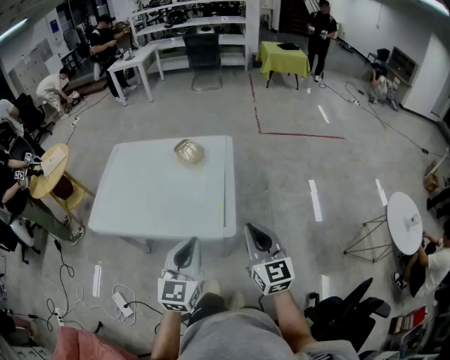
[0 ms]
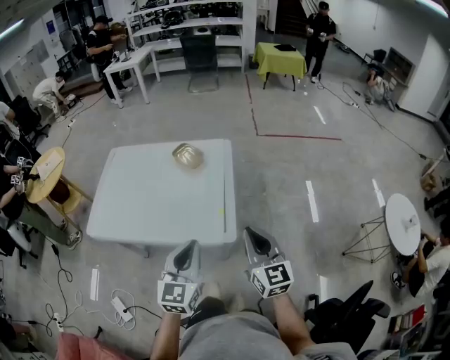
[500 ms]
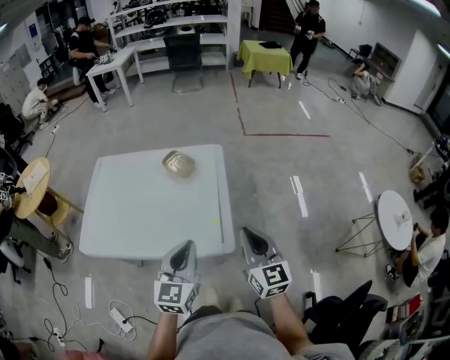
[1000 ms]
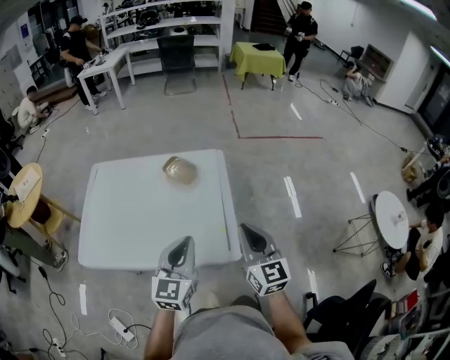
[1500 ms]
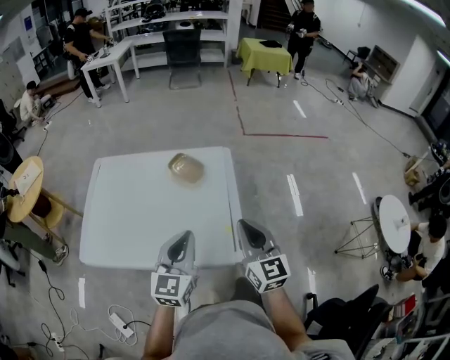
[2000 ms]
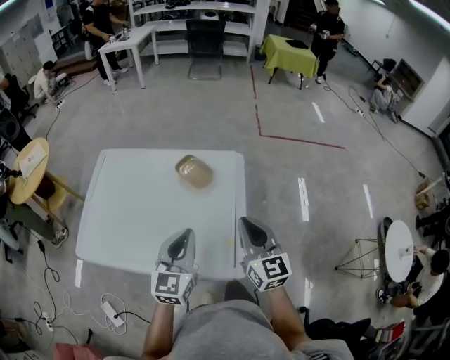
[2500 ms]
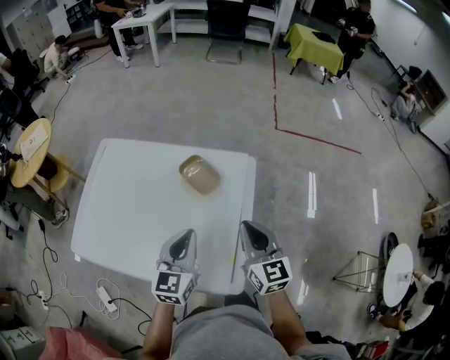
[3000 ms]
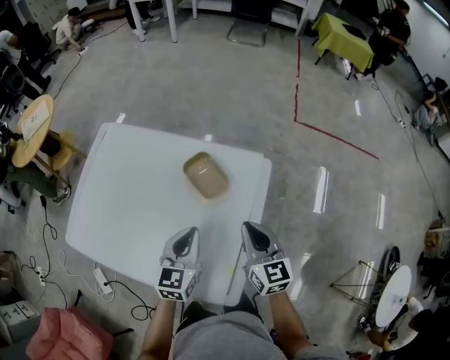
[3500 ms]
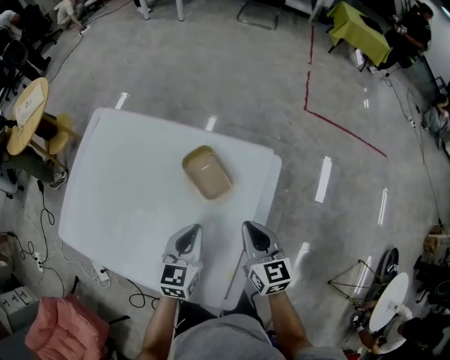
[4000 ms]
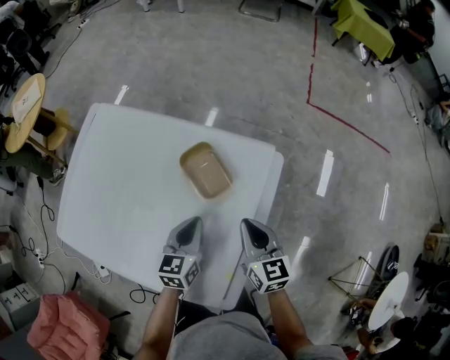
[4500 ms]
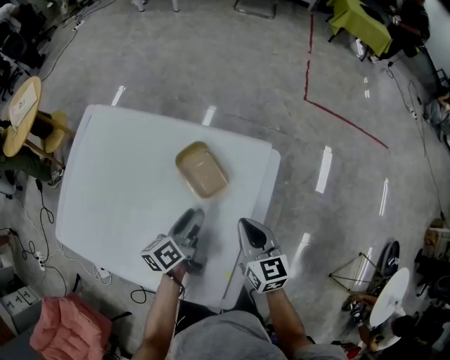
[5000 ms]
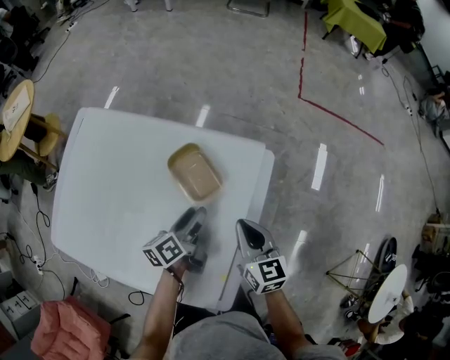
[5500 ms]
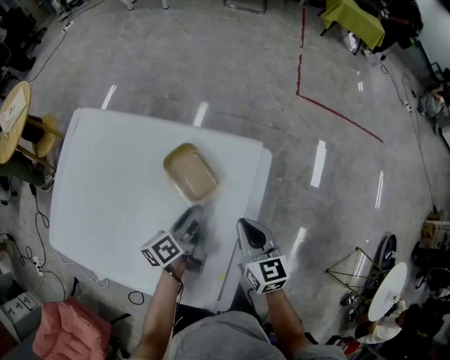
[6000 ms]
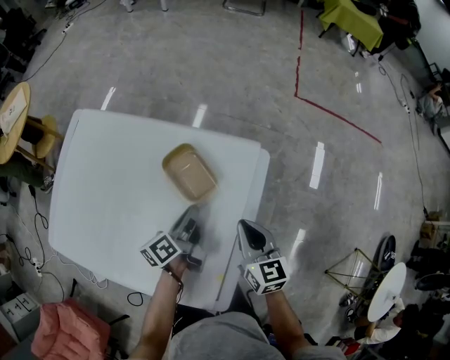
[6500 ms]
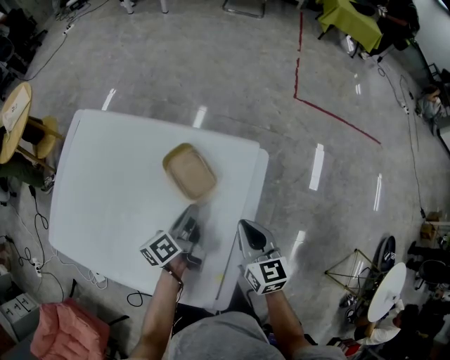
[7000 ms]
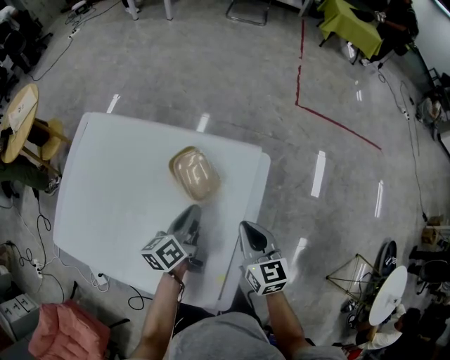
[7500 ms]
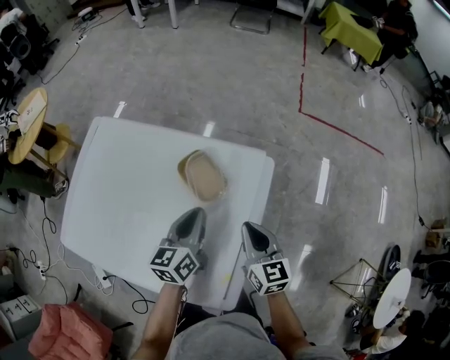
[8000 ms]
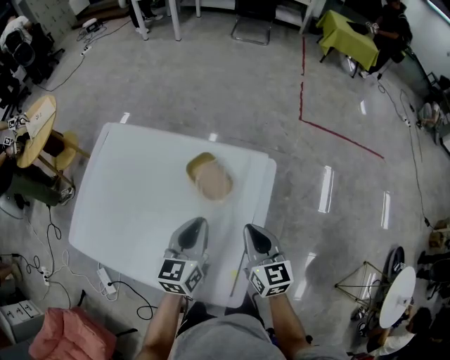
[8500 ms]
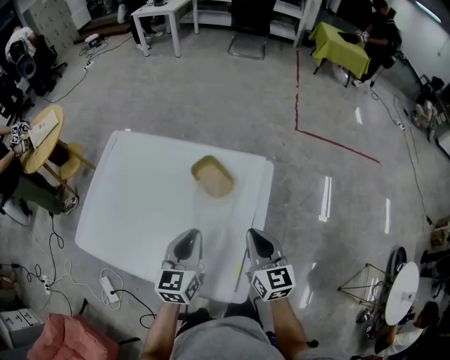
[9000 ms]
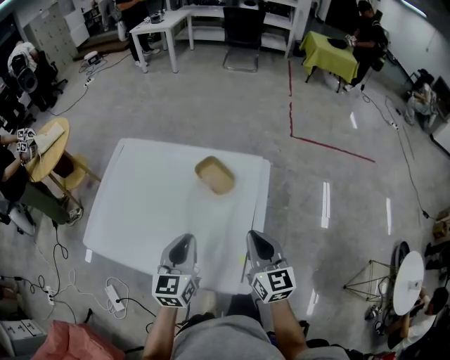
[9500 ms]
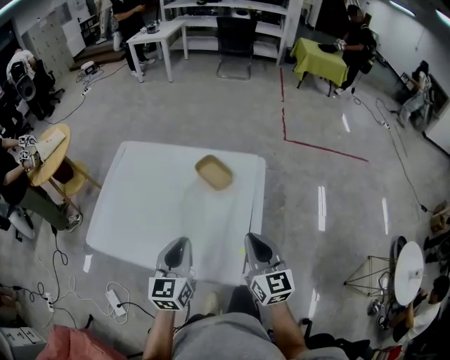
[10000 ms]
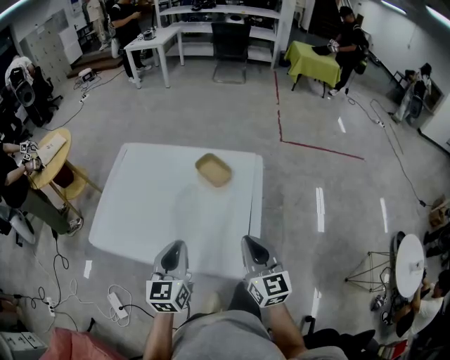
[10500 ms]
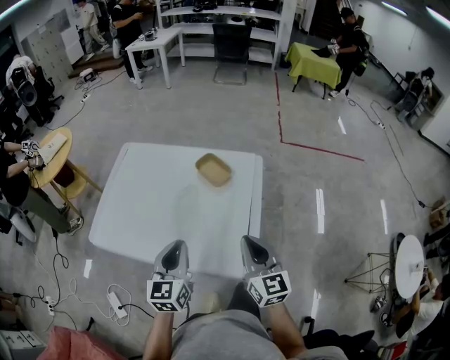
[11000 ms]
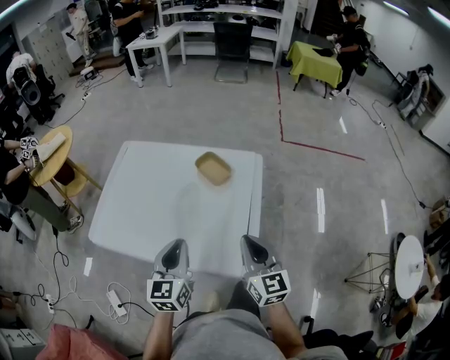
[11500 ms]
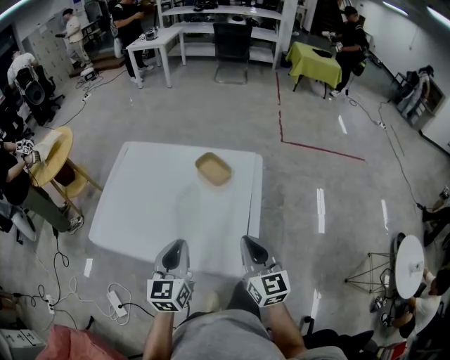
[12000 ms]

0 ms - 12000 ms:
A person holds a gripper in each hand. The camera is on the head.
0 ms - 2000 ms: Both grippers travel together forward and to the left, about 15 cm.
2000 ms - 4000 ms: The grippers both shift forward and downward by some 30 cm. The right gripper changes its angle by approximately 30 degrees; the left gripper turns by roughly 30 degrees.
4000 ms - 6000 ms: The left gripper is displaced downward and forward by about 10 cm, rolls counterclockwise, seen from behind, by roughly 50 degrees, and opens up.
6000 ms - 8000 ms: The left gripper heads upward, covering some 10 cm, changes its angle by approximately 30 degrees, and closes.
8000 ms - 10000 ms: The right gripper travels backward and upward by about 20 cm, while the left gripper travels backward, to the left and upward by approximately 25 cm, and changes its angle by some 20 degrees.
10000 ms - 12000 ms: There are only small adjustments of the grippers.

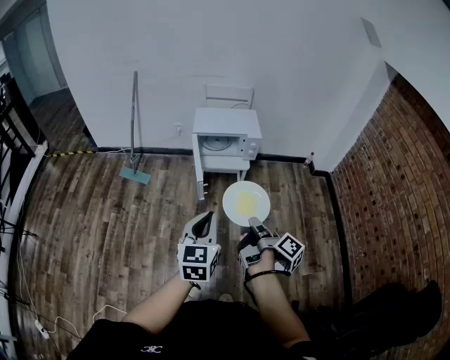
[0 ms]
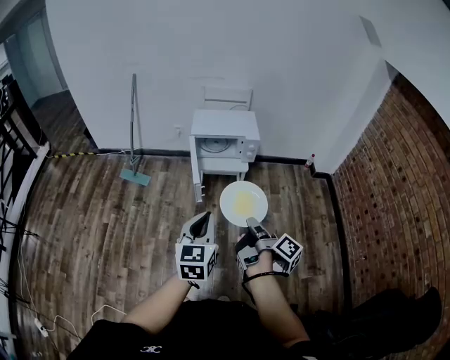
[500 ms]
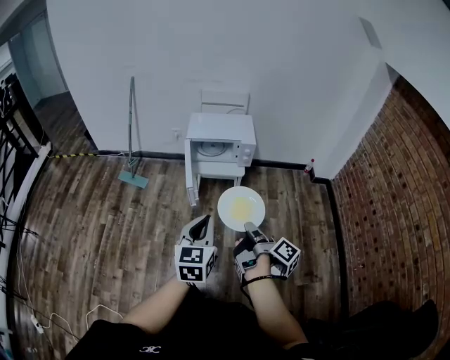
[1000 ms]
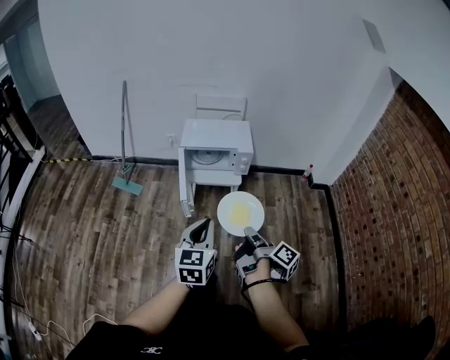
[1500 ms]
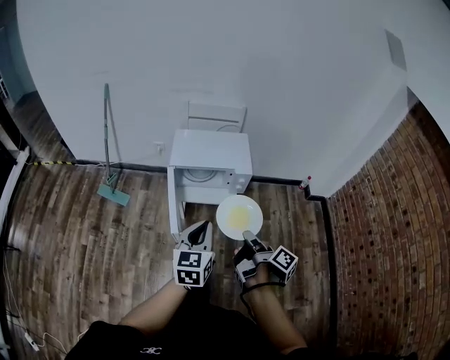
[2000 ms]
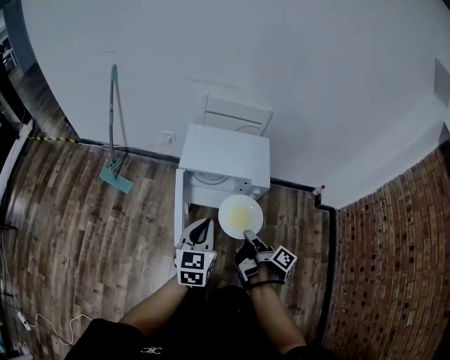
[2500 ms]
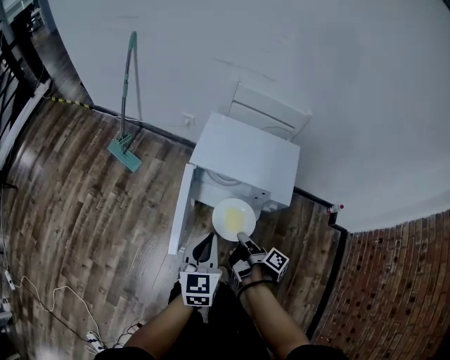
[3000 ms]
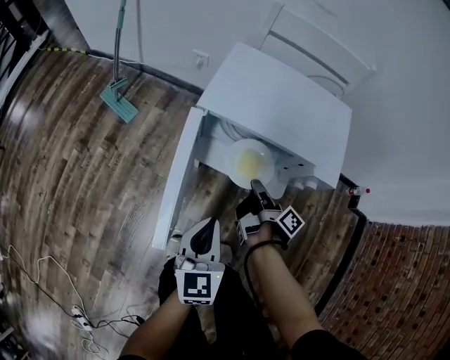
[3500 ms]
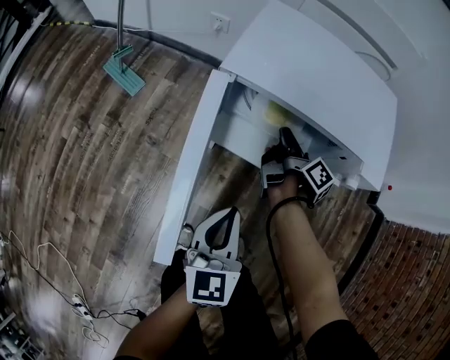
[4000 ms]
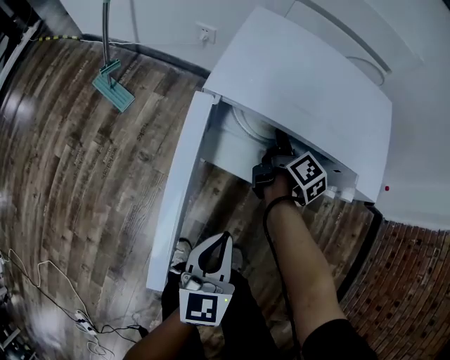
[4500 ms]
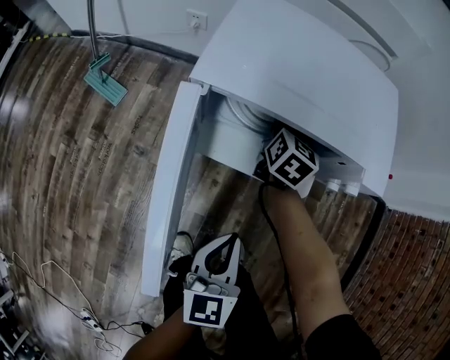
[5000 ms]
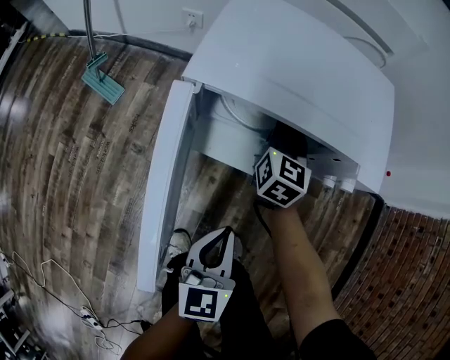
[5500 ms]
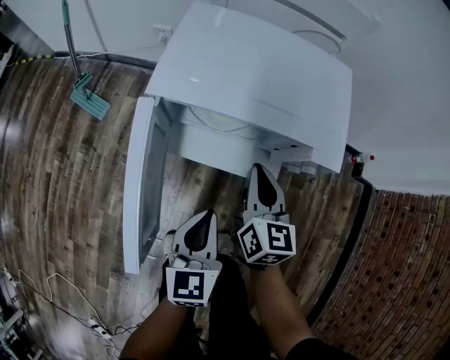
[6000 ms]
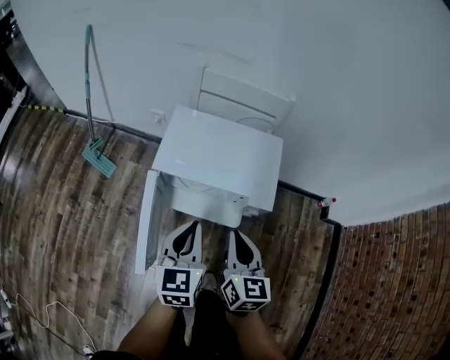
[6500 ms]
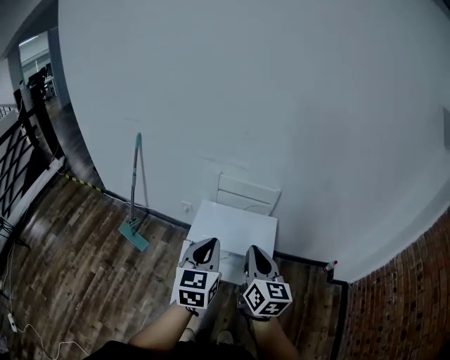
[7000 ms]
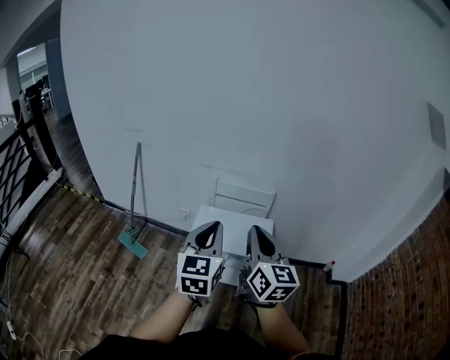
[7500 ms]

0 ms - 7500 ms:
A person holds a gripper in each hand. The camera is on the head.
0 ms - 2000 ms: Both grippers move forward, roughly 25 cm.
2000 ms - 4000 ms: The left gripper shifts some 40 cm downward and forward. Meanwhile the right gripper shifts about 60 cm forward and downward.
4000 ms - 5500 ms: The right gripper ends up roughly 5 cm from where it was, rolls counterclockwise, seen from behind, by about 70 degrees, and opens, then closes again.
5500 ms - 7500 ms: The two grippers go roughly 60 cm upward. The right gripper turns by some 30 degrees. The left gripper turns by about 30 degrees.

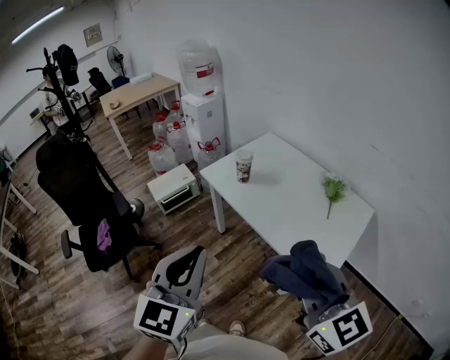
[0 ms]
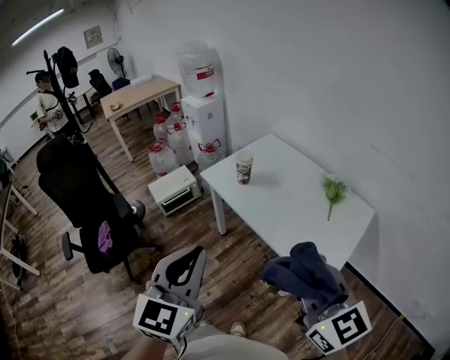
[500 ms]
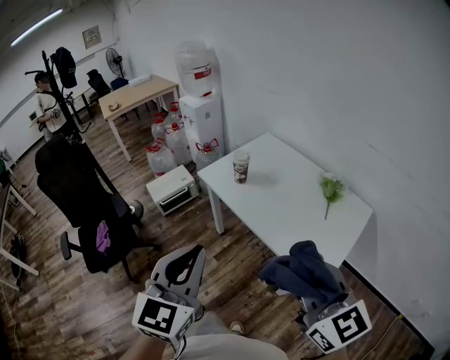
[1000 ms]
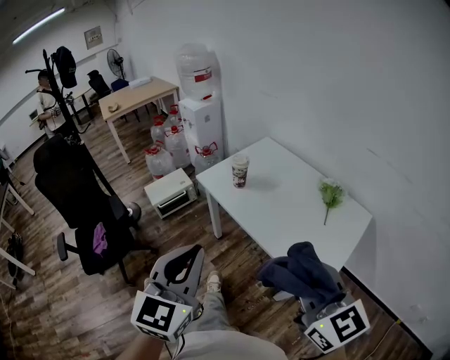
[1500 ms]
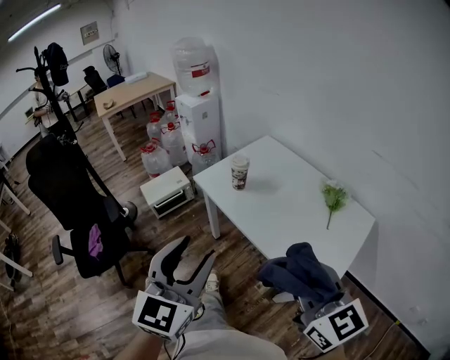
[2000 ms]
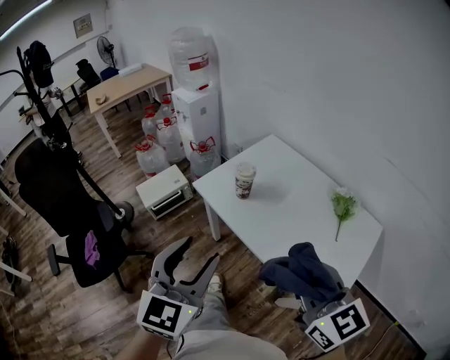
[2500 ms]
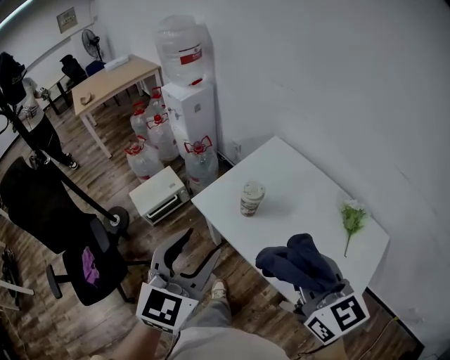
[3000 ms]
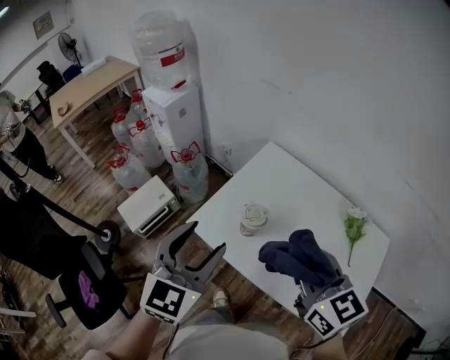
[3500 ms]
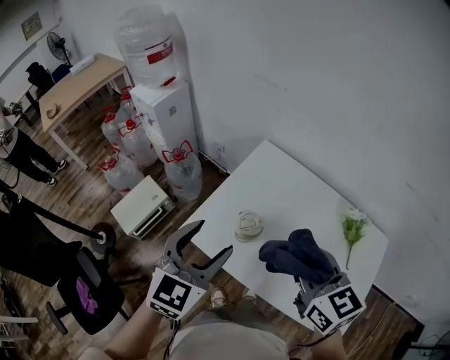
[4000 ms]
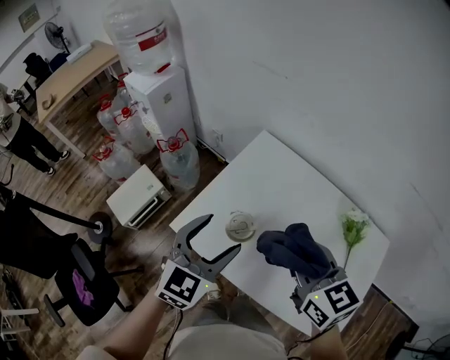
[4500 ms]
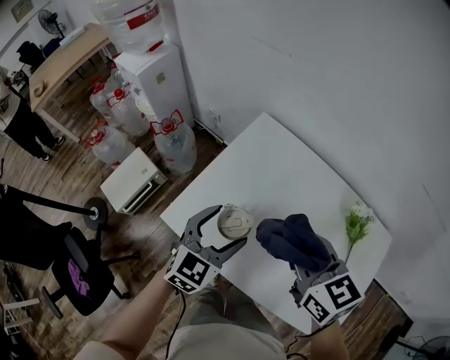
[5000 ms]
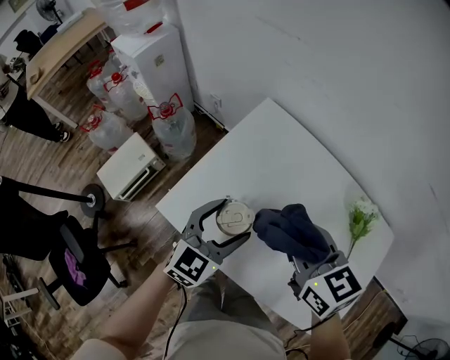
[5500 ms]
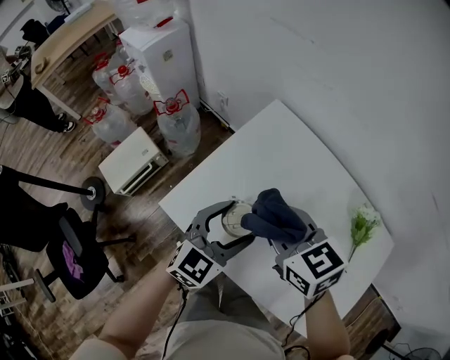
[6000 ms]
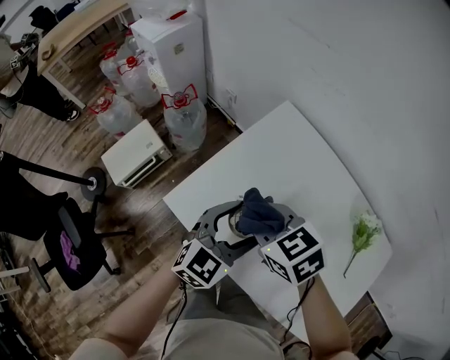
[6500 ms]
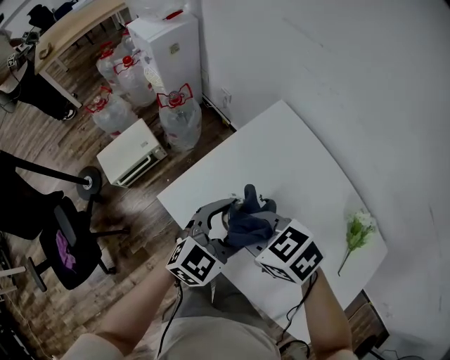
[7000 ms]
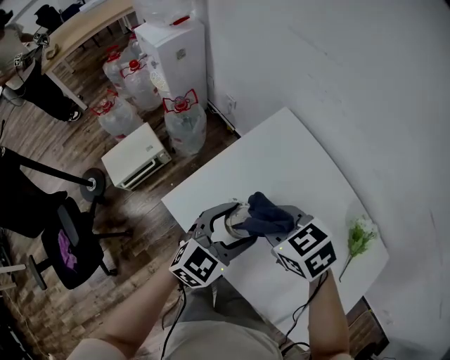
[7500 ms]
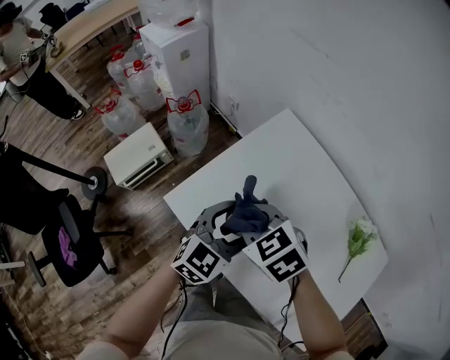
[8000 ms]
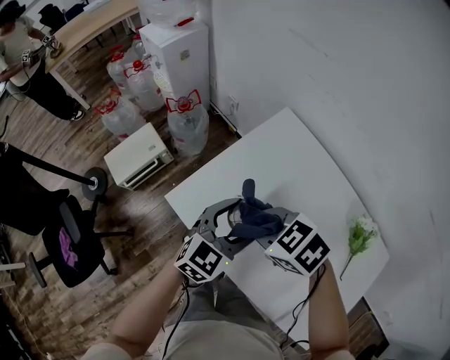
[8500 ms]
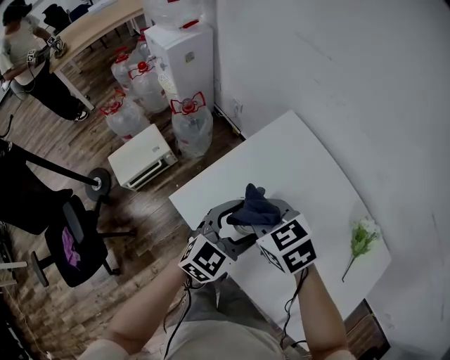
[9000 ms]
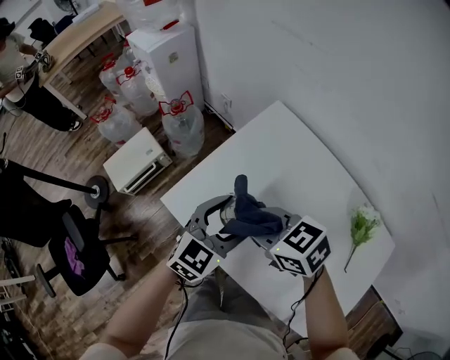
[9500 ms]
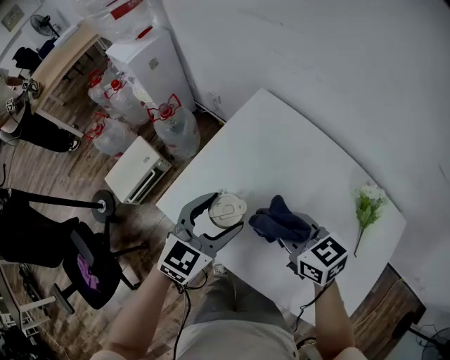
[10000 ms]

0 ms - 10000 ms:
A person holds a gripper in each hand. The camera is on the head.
0 ms - 2000 ms: The grippers both shift forward by roughly 5 cm. The left gripper opens.
2000 ms - 4000 ms: The two grippers travel together, forward, about 40 cm. The right gripper turns by roughly 20 degrees, while the left gripper changes its angle by some 30 degrees.
4000 ms - 6000 ms: The left gripper travels downward, to the right and forward by approximately 20 cm. The right gripper moves downward and forward, roughly 20 cm, and changes its angle by about 20 degrees.
6000 ms - 8000 ms: The right gripper moves left and right over some 5 cm, changing direction 2 times, and changes its angle by about 30 degrees.
8000 ms - 10000 ms: The right gripper travels to the right by roughly 10 cm, and turns by about 30 degrees.
